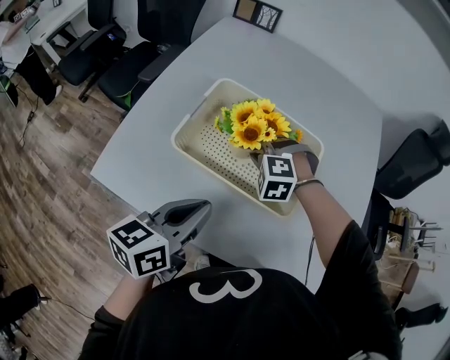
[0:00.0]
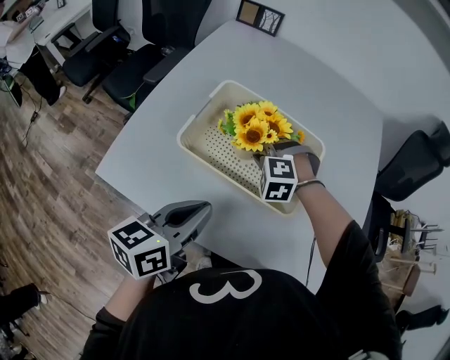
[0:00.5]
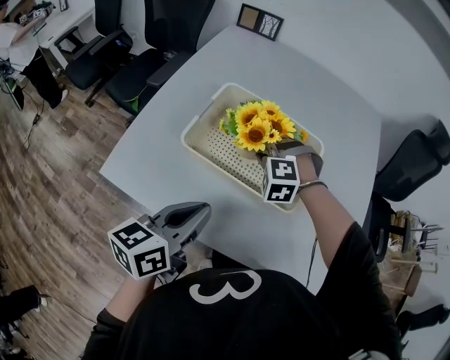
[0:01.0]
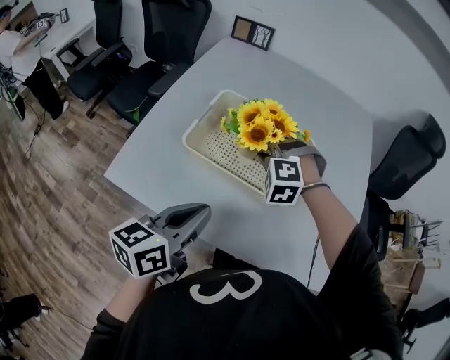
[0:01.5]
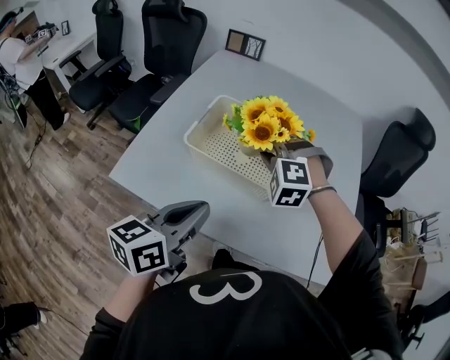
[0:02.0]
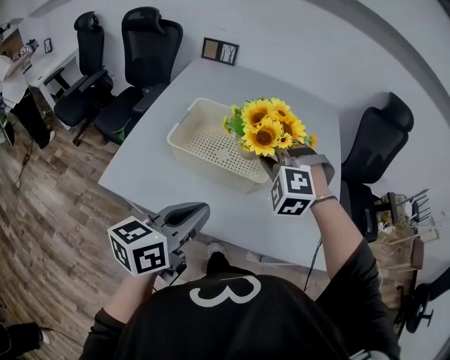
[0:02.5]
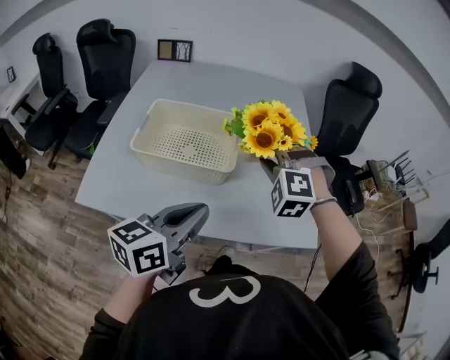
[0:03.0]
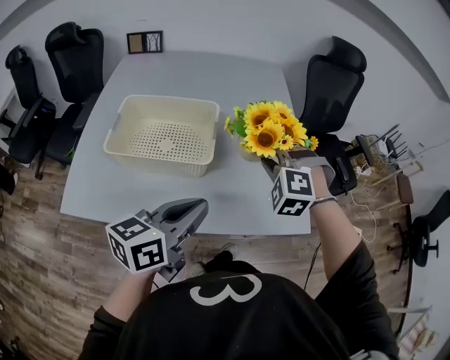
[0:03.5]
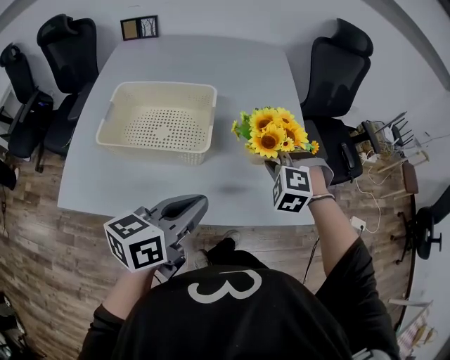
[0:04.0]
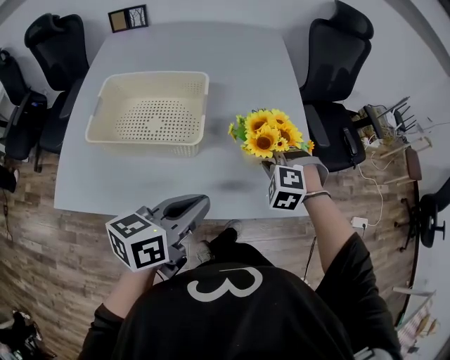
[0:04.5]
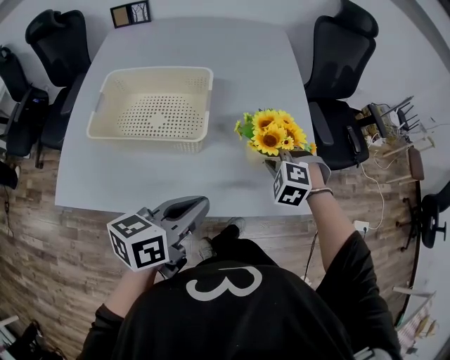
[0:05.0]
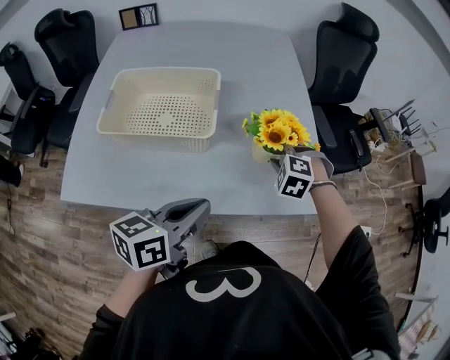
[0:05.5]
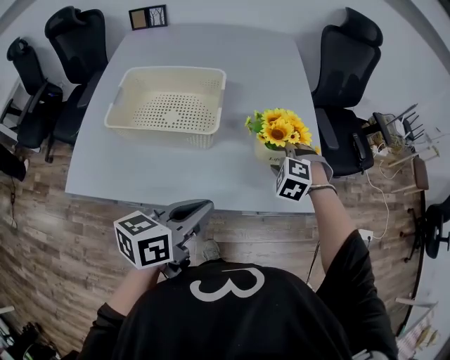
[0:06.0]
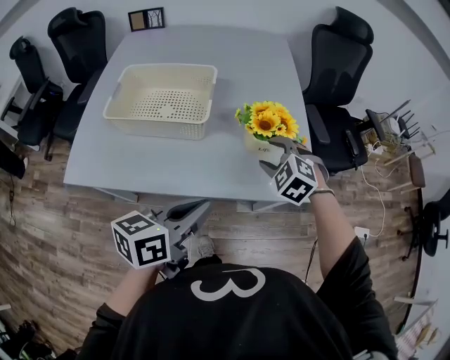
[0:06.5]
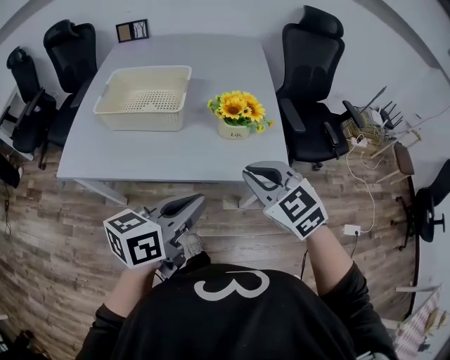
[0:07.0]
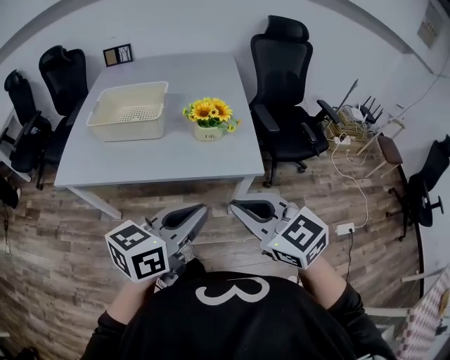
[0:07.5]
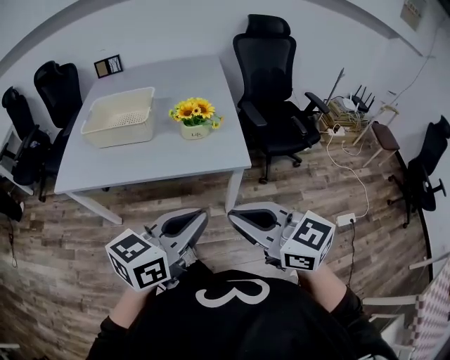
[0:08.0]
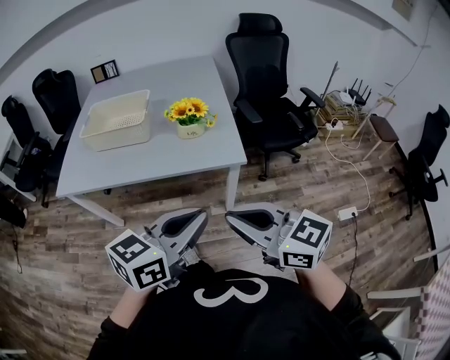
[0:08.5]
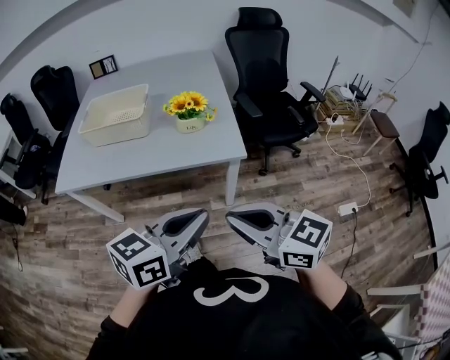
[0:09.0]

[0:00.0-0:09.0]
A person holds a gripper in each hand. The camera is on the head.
0:00.0 to 0:02.0: The right gripper travels upward and backward by approximately 15 cm. The left gripper heads backward and upward, covering some 10 cm.
0:02.0 to 0:04.5: The right gripper moves approximately 35 cm, and rotates about 30 degrees. Meanwhile the left gripper moves about 20 cm, and swivels approximately 30 degrees.
0:04.5 to 0:07.0: The right gripper moves backward and upward, approximately 25 cm, swivels roughly 50 degrees, and opens and closes again. Meanwhile the left gripper is displaced backward and to the right by about 15 cm.
0:07.0 to 0:09.0: The right gripper is displaced backward by approximately 25 cm, and rotates about 40 degrees, while the left gripper is displaced backward and to the right by some 20 cm.

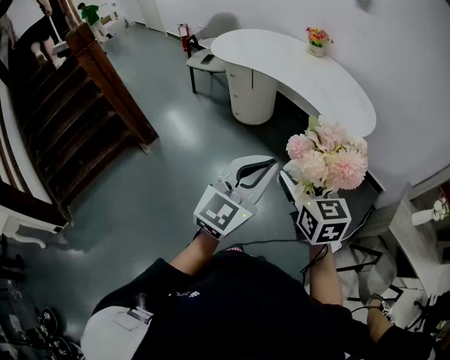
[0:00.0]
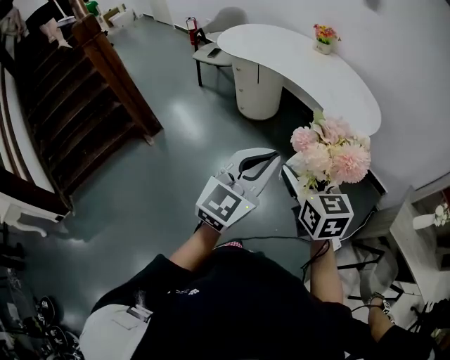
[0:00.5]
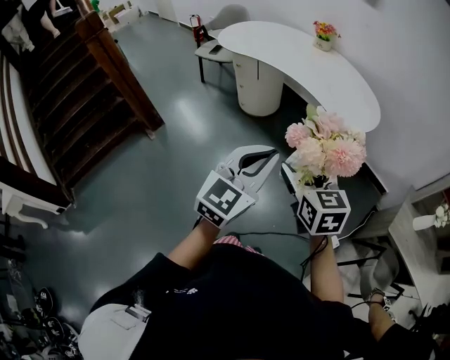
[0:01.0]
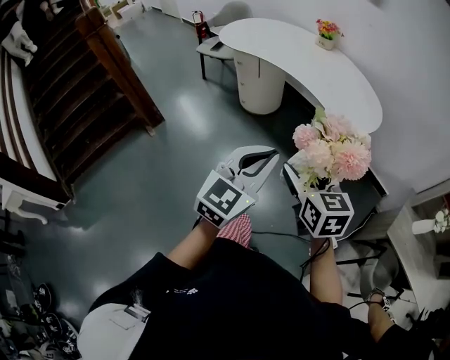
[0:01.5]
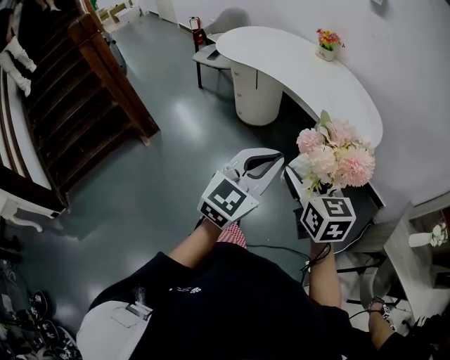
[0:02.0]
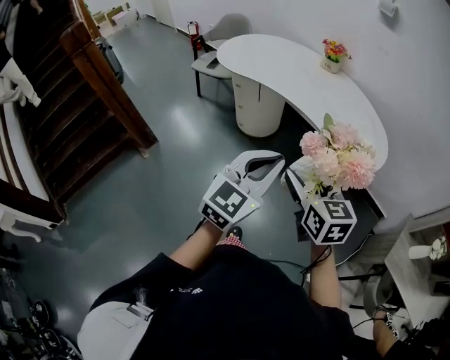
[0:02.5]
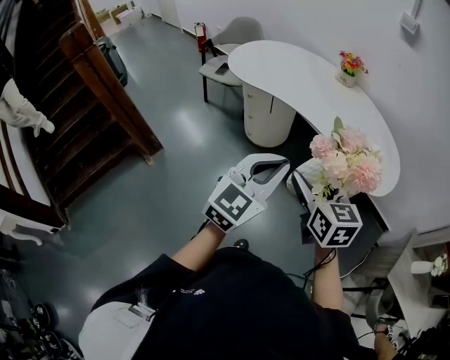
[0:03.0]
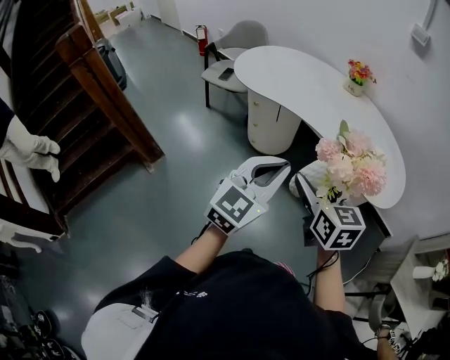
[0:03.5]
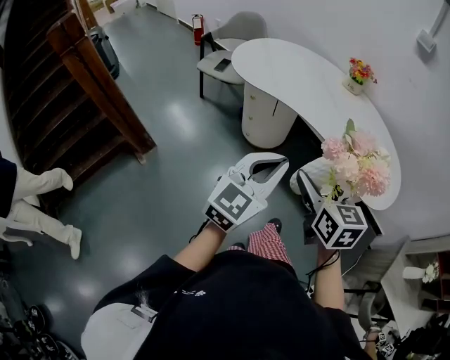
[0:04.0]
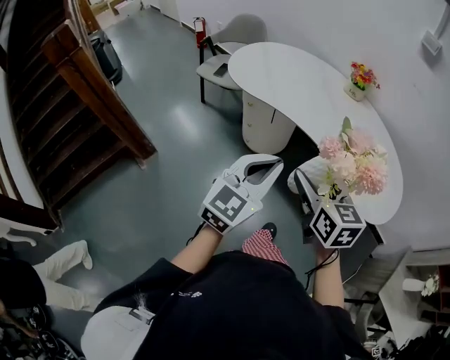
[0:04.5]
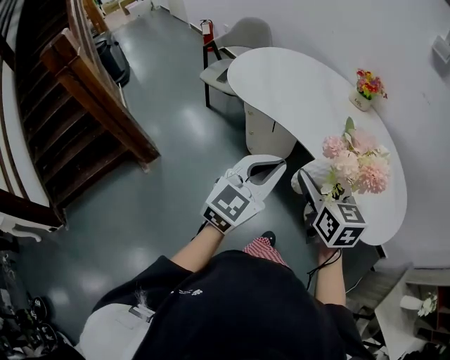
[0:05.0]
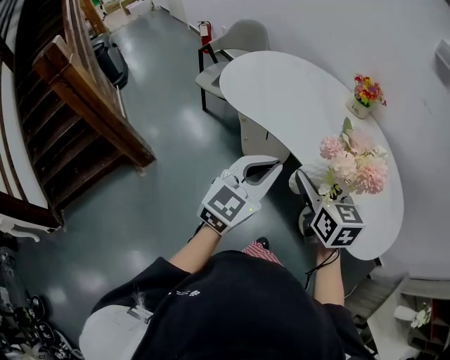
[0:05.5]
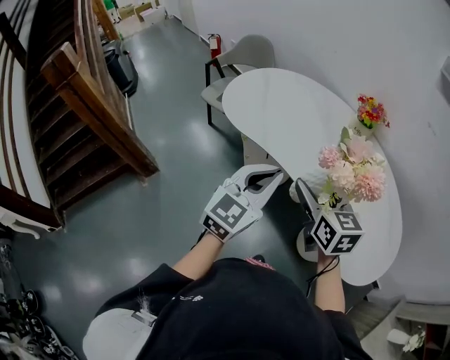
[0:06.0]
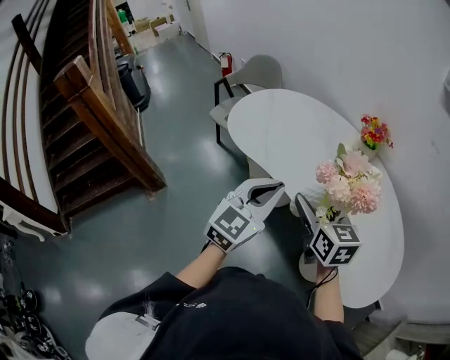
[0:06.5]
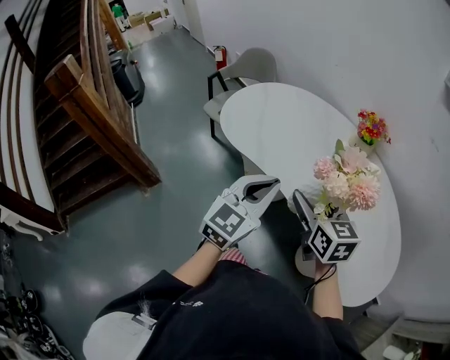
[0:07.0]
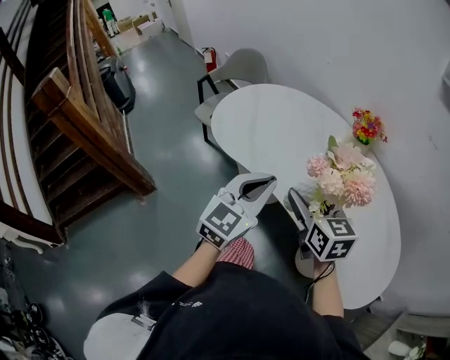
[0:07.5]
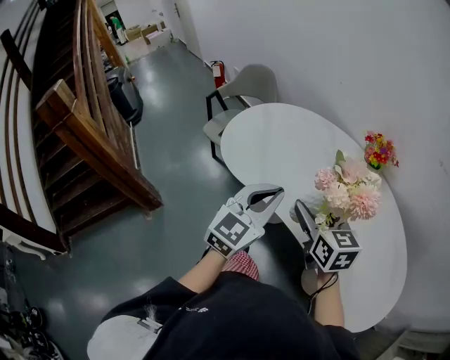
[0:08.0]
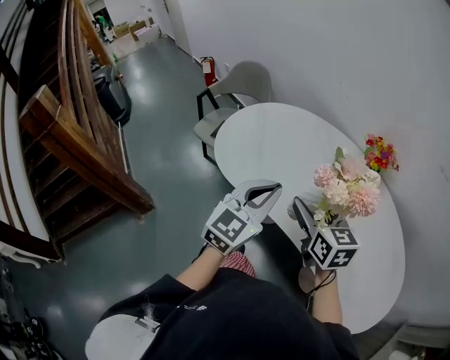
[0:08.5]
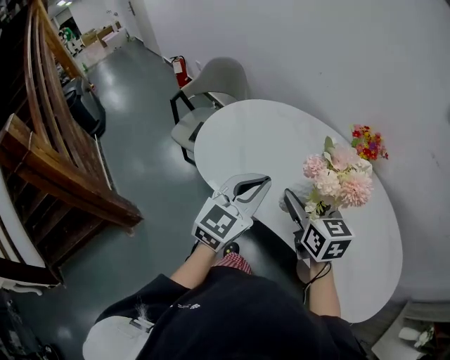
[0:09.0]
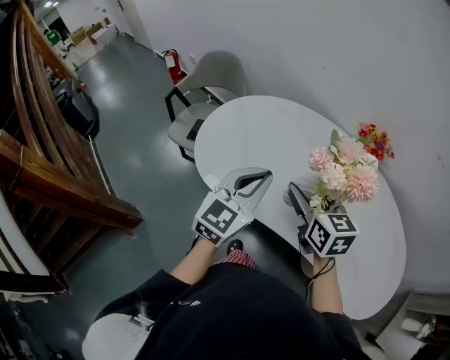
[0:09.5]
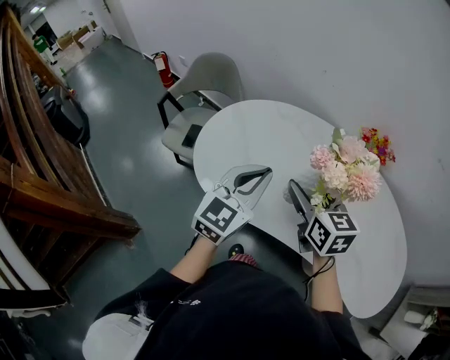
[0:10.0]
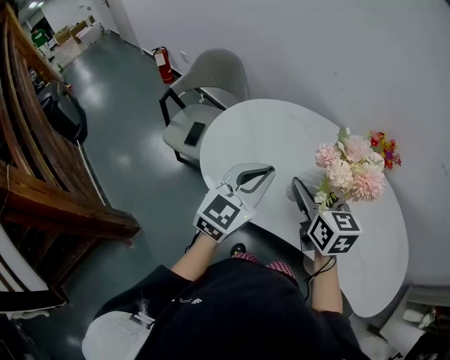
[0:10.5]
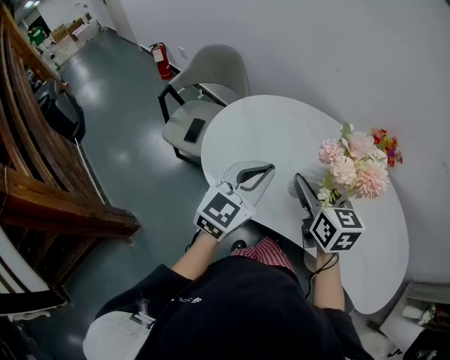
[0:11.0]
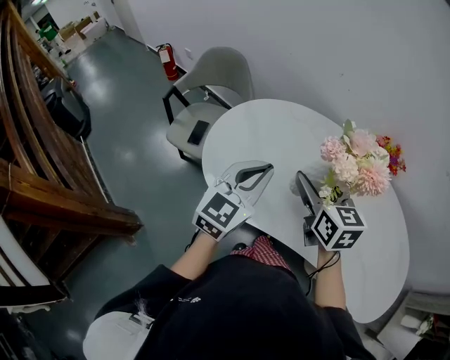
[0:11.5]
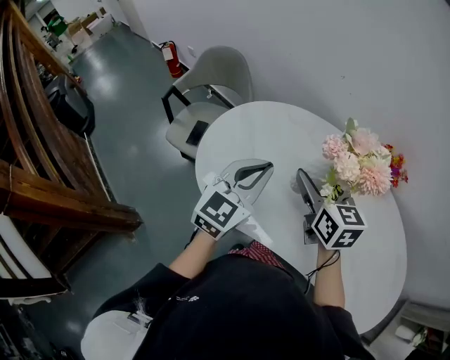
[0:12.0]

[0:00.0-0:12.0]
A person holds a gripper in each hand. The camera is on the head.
0:00.0 to 0:02.0: Both grippers travel together forward, approximately 10 cm.
0:02.0 to 0:04.0: Both grippers travel together forward and to the left, about 30 cm.
0:04.0 to 0:06.0: The two grippers go approximately 25 cm forward.
0:06.0 to 0:08.0: Both grippers travel together forward, some 15 cm.
0:08.0 to 0:10.0: The grippers both shift forward and to the left by approximately 20 cm.
0:10.0 to 0:12.0: Both grippers move forward, about 10 cm.

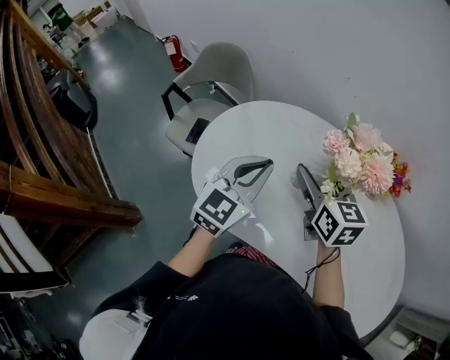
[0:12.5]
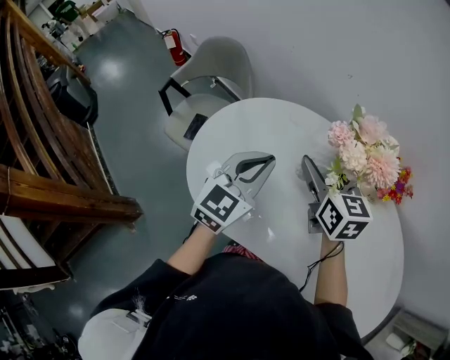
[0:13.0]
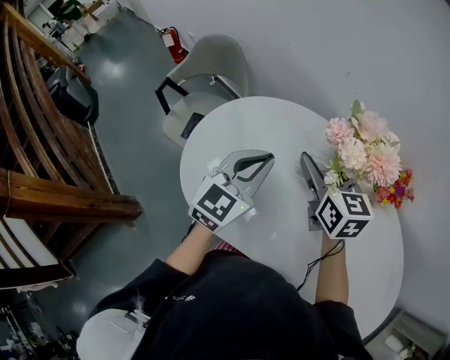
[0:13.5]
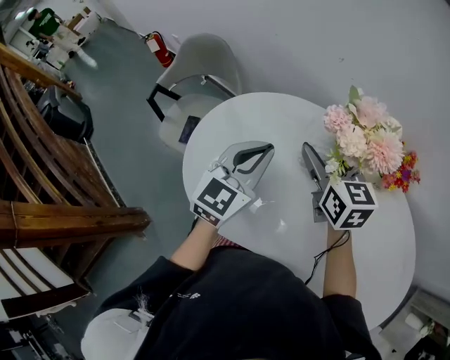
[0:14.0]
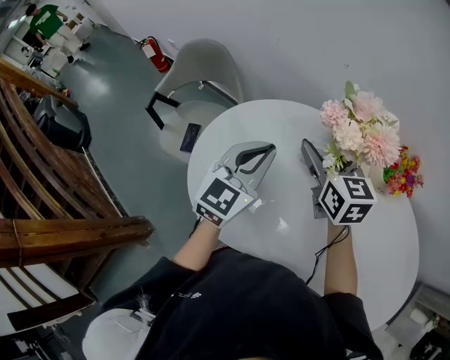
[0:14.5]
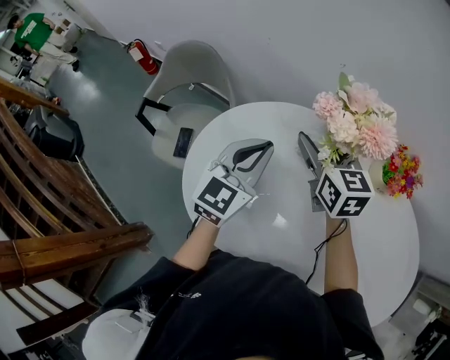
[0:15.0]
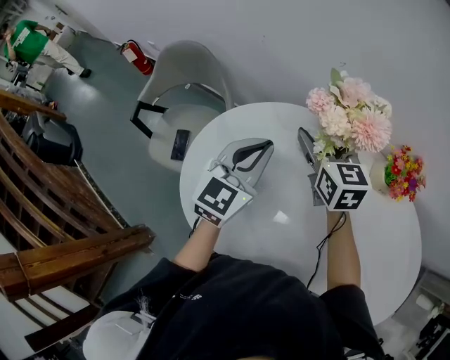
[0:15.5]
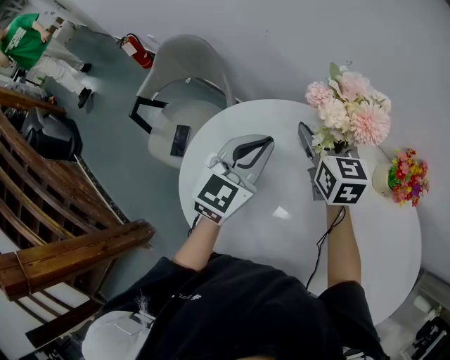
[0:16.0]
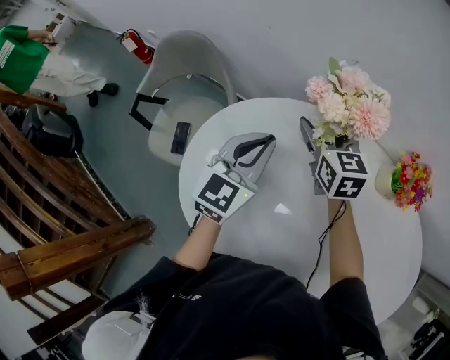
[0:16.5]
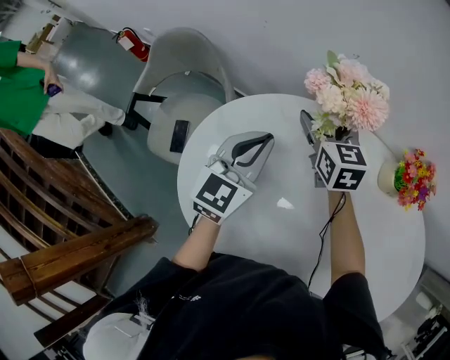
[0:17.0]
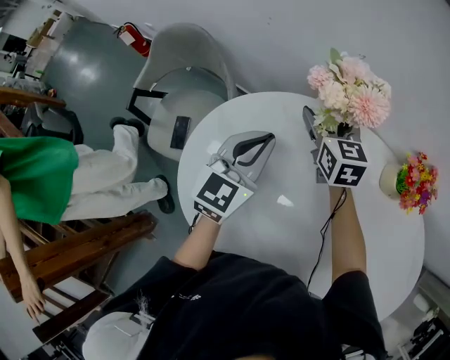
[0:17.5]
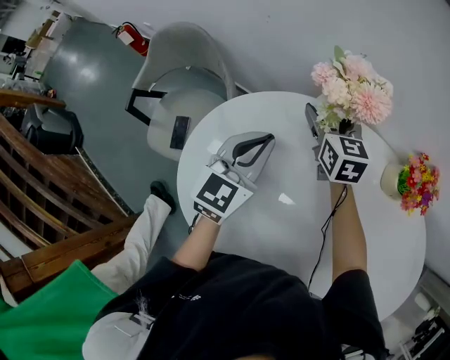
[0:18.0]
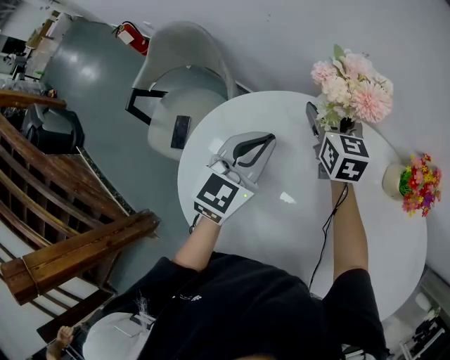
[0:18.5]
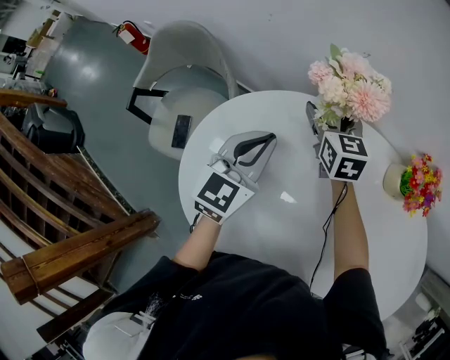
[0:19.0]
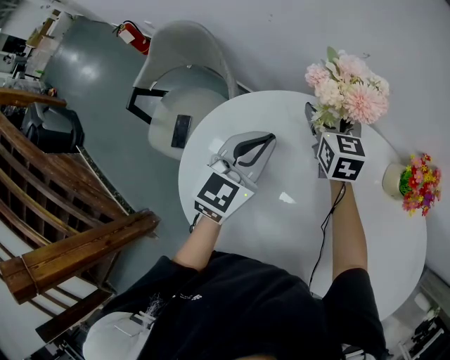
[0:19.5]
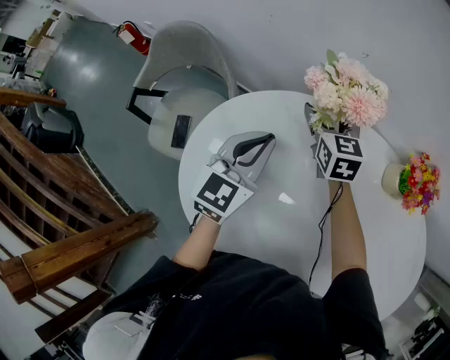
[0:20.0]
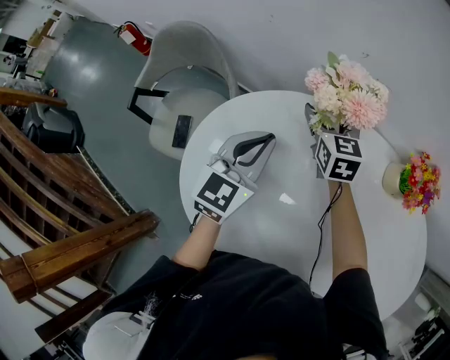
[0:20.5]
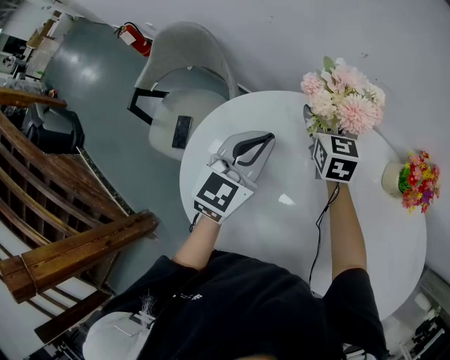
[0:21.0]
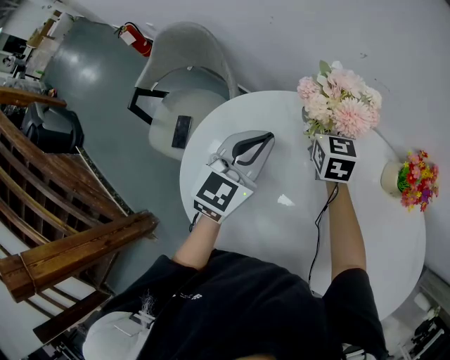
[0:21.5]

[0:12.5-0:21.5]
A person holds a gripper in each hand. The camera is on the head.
0:12.5 to 0:14.5: The grippers both shift forward by about 10 cm.
0:14.5 to 0:17.0: The left gripper moves forward, roughly 10 cm. The right gripper heads forward and downward, covering some 15 cm.
0:17.0 to 0:21.5: The grippers move only a little.
